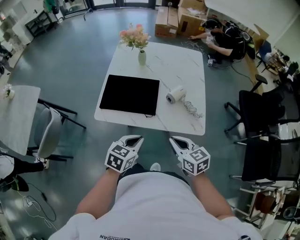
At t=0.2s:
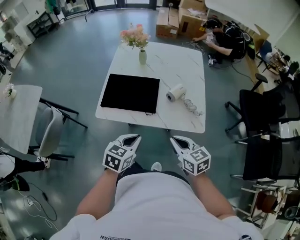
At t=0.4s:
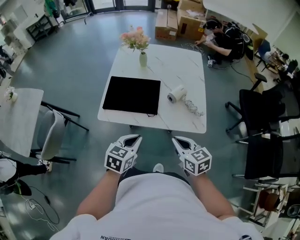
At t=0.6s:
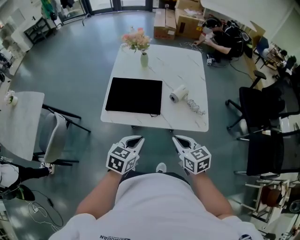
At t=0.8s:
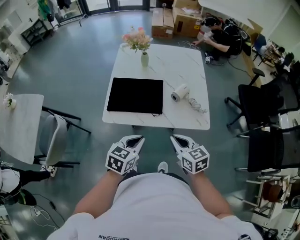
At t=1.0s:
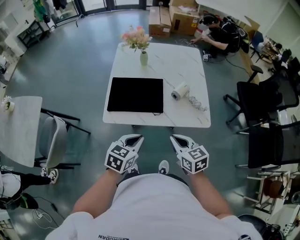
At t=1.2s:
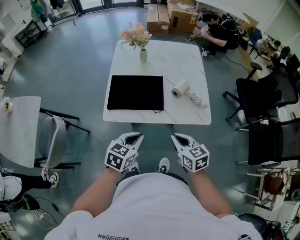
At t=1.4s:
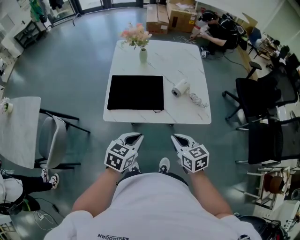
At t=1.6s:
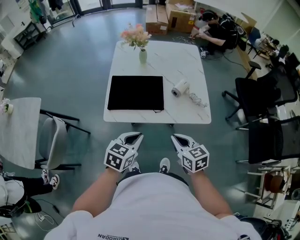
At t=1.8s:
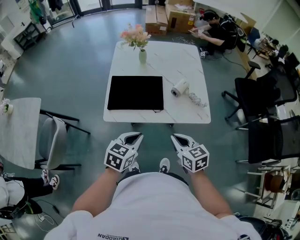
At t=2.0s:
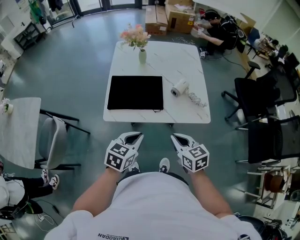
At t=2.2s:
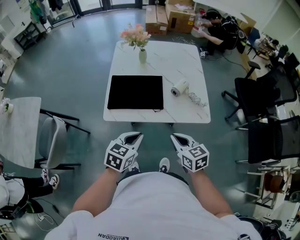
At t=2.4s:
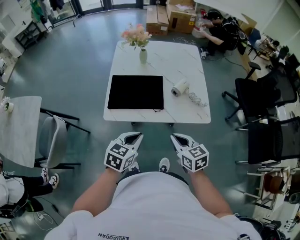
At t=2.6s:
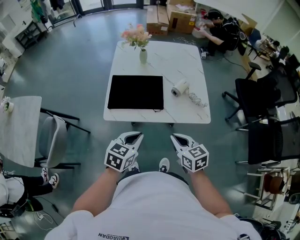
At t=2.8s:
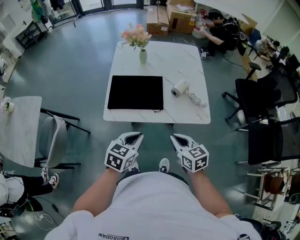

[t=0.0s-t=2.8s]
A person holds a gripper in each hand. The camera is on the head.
t=0.0s to t=1.4s: The grippers both shift to the left by roughly 5 cm.
t=1.4s to t=2.8s: The two grippers keep their place.

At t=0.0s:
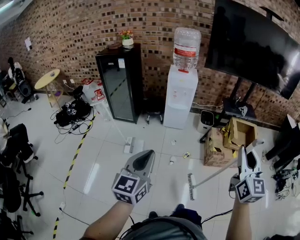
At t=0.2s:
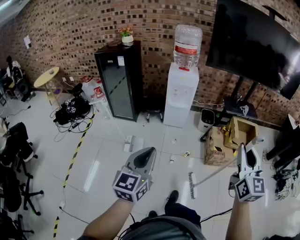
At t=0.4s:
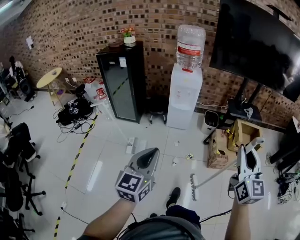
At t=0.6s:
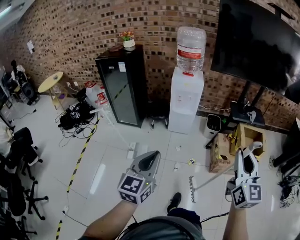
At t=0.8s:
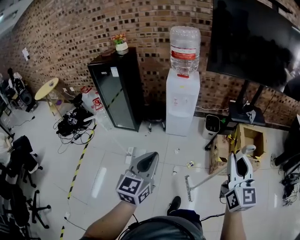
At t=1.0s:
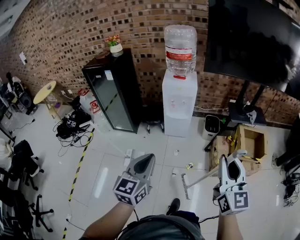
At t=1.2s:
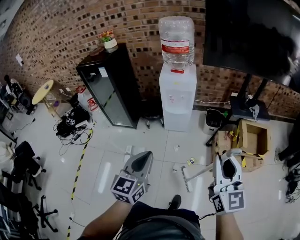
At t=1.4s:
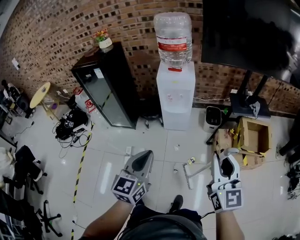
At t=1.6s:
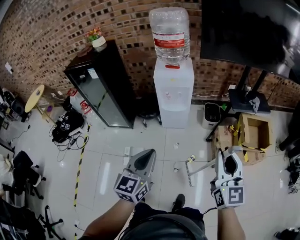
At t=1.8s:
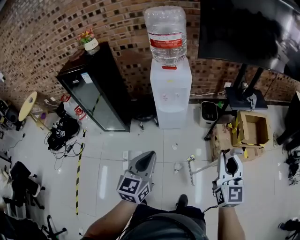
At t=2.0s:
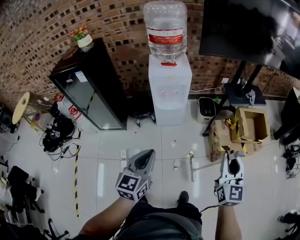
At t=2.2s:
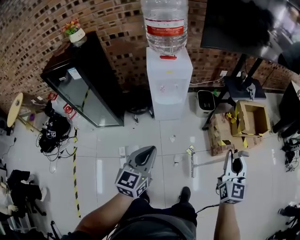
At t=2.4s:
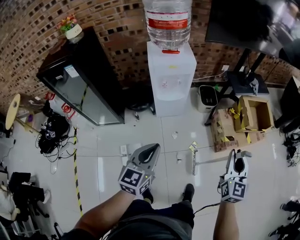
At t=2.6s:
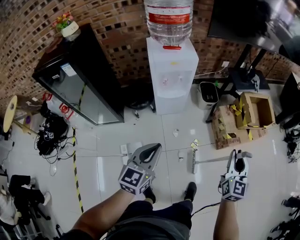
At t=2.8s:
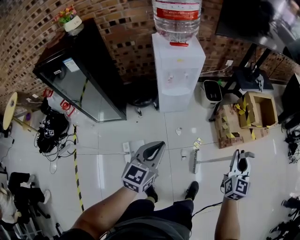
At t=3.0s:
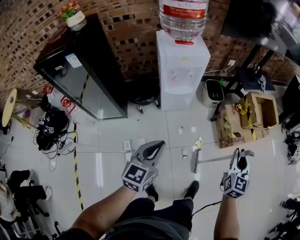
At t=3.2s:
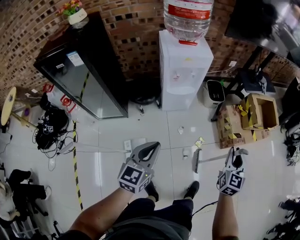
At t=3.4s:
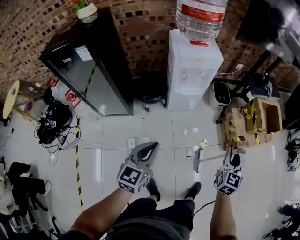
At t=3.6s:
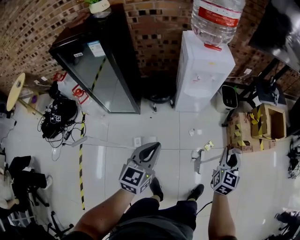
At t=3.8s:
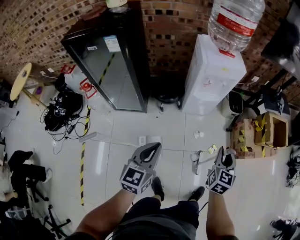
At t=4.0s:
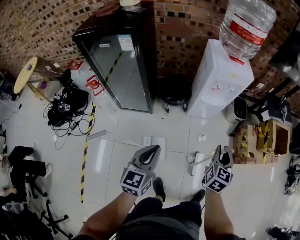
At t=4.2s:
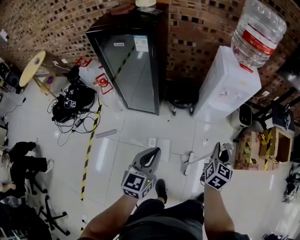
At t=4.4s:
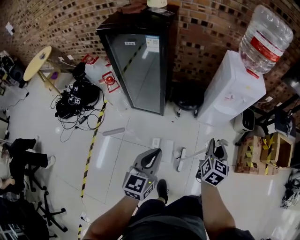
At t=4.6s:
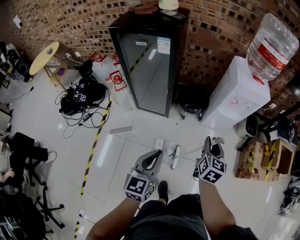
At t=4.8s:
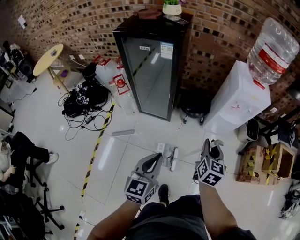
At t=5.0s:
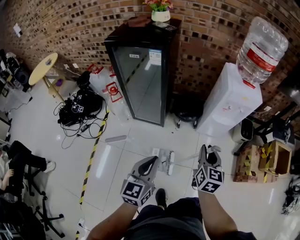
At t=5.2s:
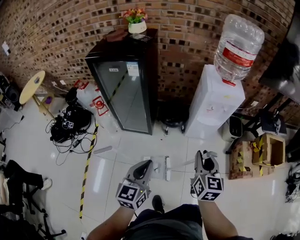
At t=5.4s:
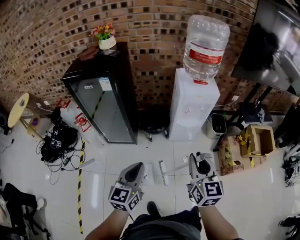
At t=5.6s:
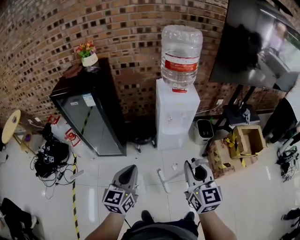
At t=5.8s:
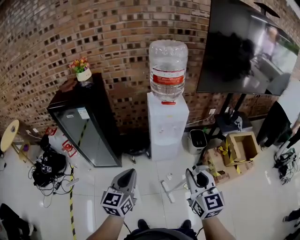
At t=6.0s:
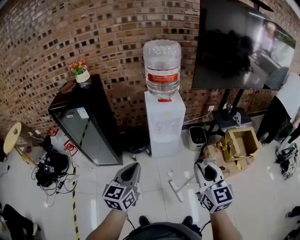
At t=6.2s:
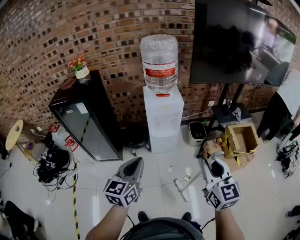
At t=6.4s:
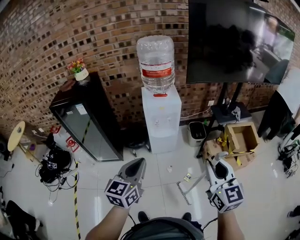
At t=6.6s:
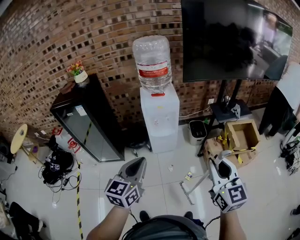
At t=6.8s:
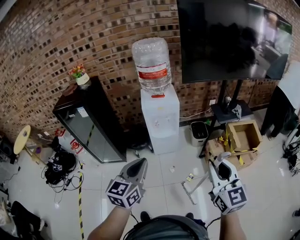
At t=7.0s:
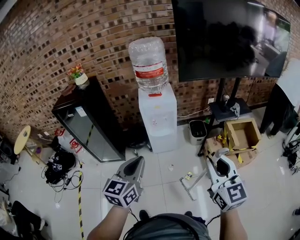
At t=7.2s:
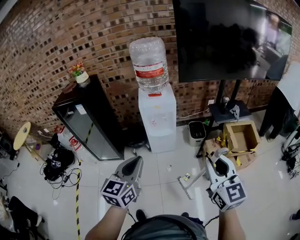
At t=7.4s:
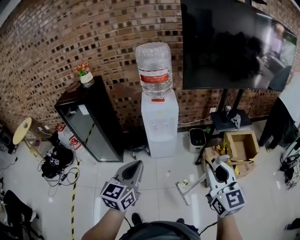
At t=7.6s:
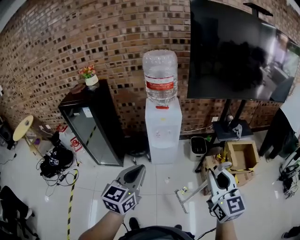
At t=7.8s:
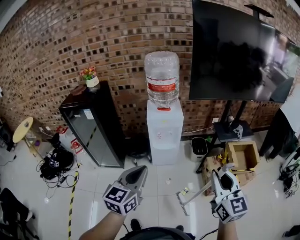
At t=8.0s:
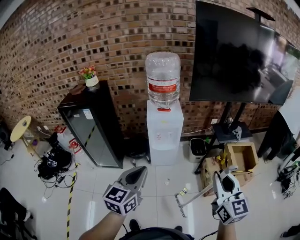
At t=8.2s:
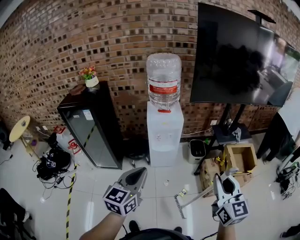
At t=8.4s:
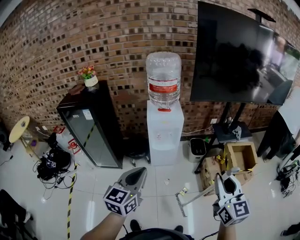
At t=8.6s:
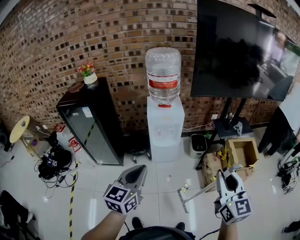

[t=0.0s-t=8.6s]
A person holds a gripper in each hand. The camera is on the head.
t=0.0s to t=1.4s: Both grippers travel together forward, roughly 35 cm.
t=1.4s to t=2.8s: The right gripper goes roughly 25 cm downward, and swivels some 40 degrees. The left gripper shifts by some 30 cm, and turns by about 20 degrees.
t=2.8s to t=4.4s: The right gripper heads to the left, covering approximately 50 cm, and changes its angle by roughly 20 degrees; the left gripper travels to the left and backward by some 35 cm, and rotates about 30 degrees.
t=4.4s to t=5.8s: The left gripper travels to the right and upward by roughly 30 cm; the right gripper shifts roughly 40 cm upward, to the right and backward, and changes its angle by roughly 20 degrees.
t=5.8s to t=7.2s: Both grippers move to the right, about 25 cm.
t=7.2s to t=8.6s: The left gripper moves to the left, roughly 5 cm.

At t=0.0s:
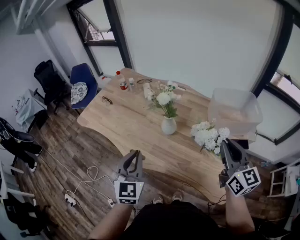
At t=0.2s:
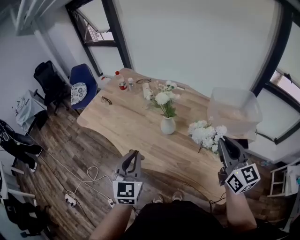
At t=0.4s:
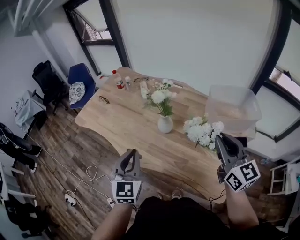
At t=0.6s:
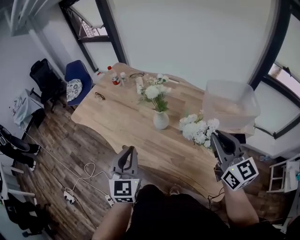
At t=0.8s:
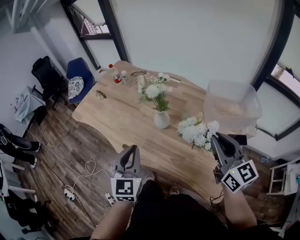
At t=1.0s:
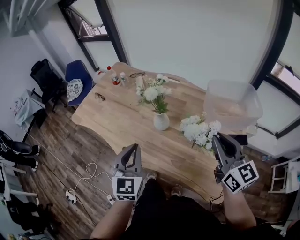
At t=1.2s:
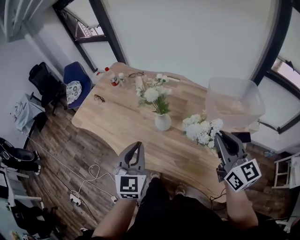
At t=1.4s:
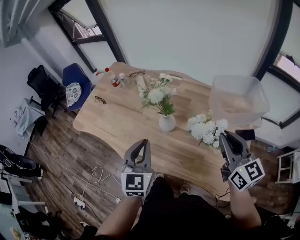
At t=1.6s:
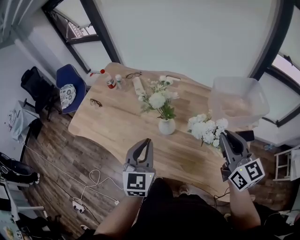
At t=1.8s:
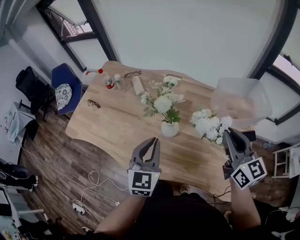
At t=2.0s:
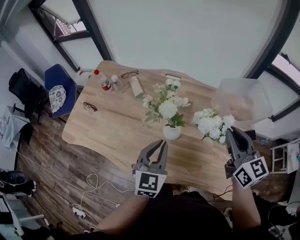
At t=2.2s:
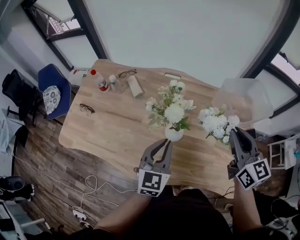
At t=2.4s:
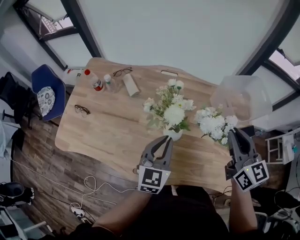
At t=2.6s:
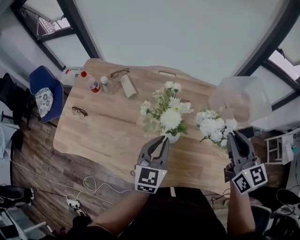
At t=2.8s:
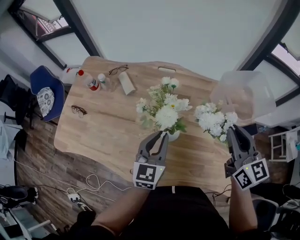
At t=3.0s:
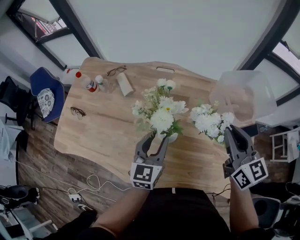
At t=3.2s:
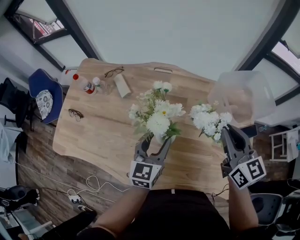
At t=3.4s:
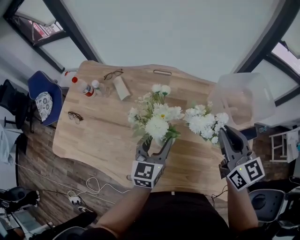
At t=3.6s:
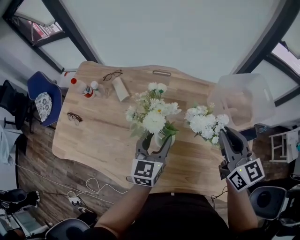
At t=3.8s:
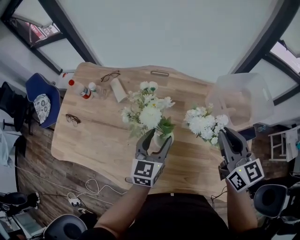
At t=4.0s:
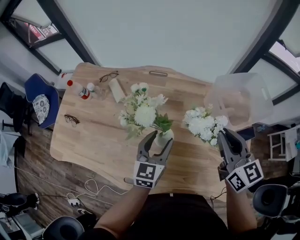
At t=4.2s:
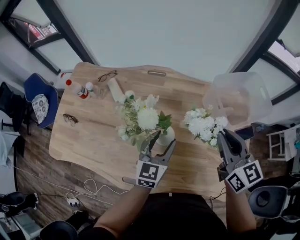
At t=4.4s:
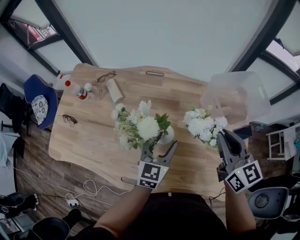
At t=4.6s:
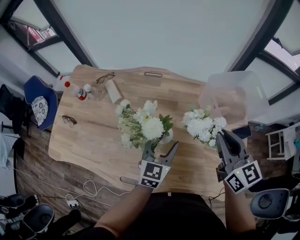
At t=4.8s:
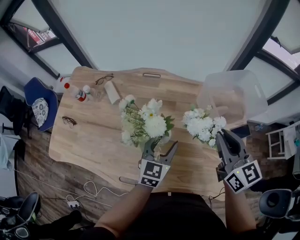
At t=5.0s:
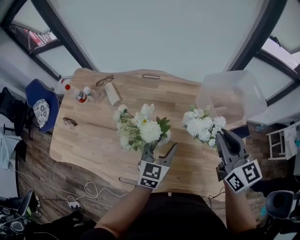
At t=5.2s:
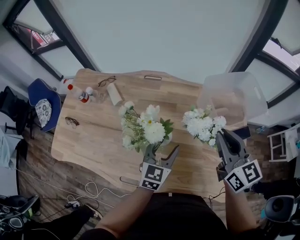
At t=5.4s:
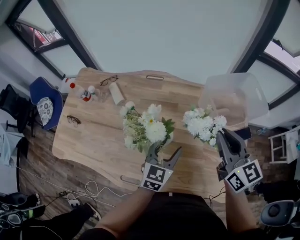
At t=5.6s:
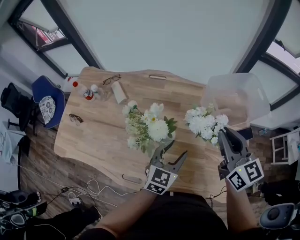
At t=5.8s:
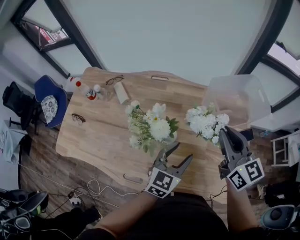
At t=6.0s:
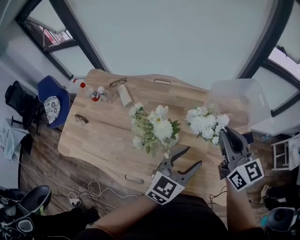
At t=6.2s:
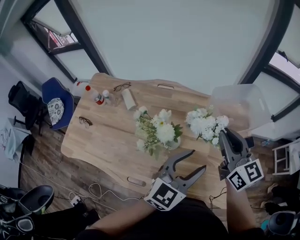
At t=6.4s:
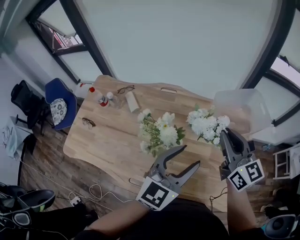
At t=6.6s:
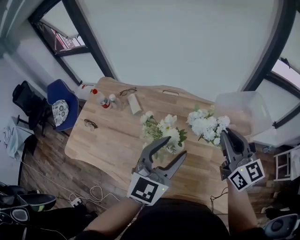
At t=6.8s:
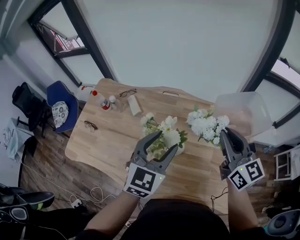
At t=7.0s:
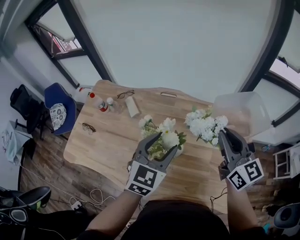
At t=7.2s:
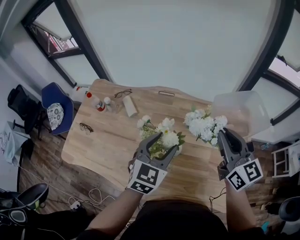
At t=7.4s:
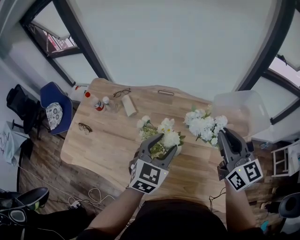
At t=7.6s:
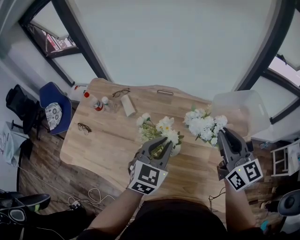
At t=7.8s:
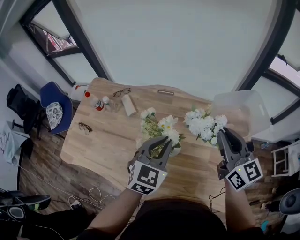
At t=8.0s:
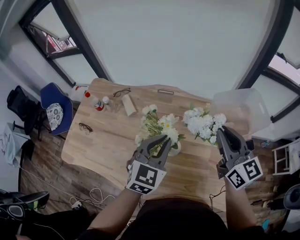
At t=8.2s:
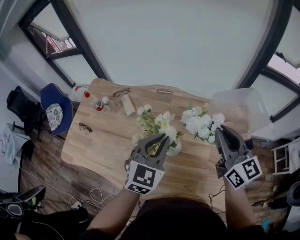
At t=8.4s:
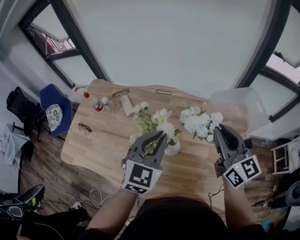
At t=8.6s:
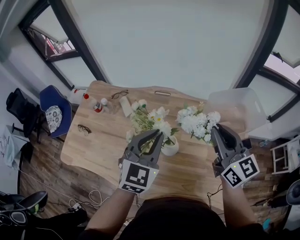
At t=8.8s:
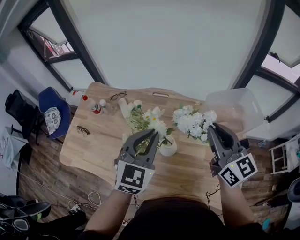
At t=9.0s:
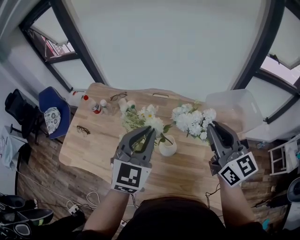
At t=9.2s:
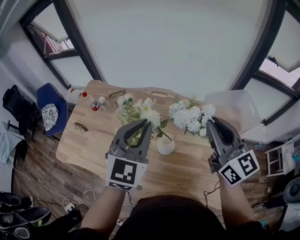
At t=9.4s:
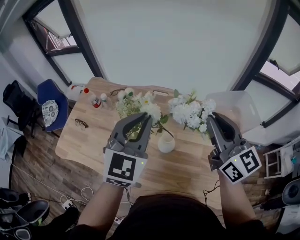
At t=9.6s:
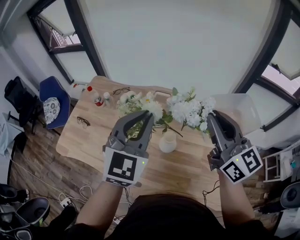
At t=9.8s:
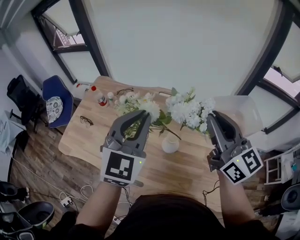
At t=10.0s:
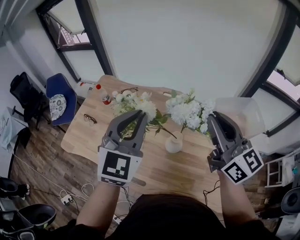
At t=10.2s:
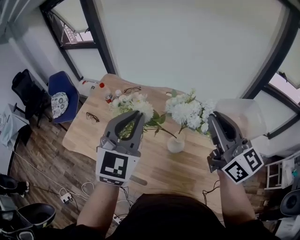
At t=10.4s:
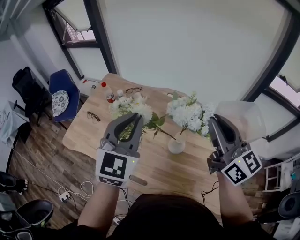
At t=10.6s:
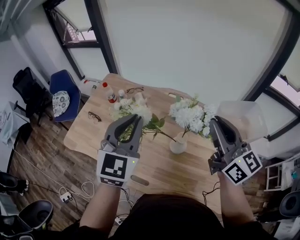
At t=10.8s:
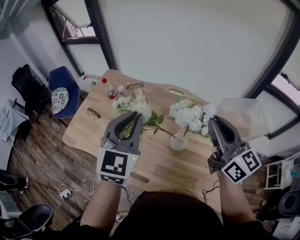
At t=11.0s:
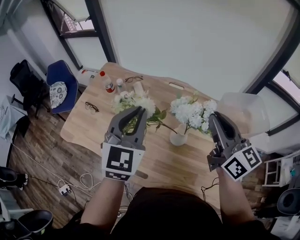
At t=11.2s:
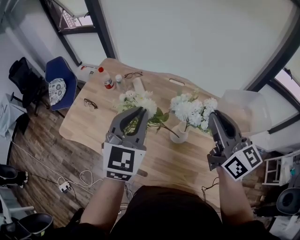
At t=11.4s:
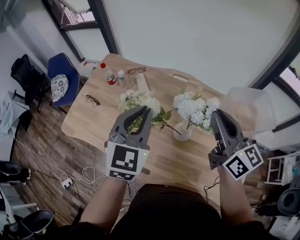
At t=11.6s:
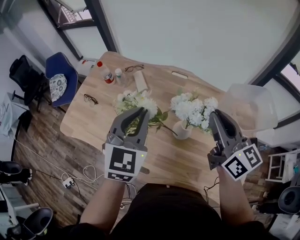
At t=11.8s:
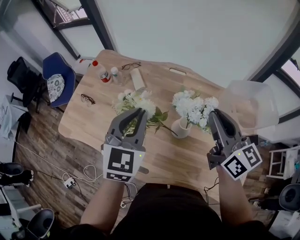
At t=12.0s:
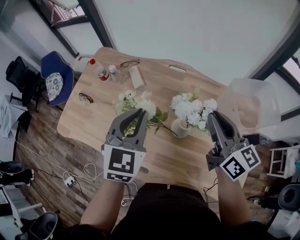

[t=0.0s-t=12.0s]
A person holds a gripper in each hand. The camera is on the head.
t=0.0s to t=1.6s: The right gripper moves forward, about 5 cm. Meanwhile the left gripper is displaced forward and to the right by about 10 cm.
t=1.6s to t=3.0s: The left gripper travels forward and downward by roughly 15 cm, rotates roughly 20 degrees, and opens up. Meanwhile the right gripper moves forward, approximately 10 cm.
t=3.0s to t=4.4s: The left gripper moves to the right, roughly 5 cm, and opens its fingers.
t=4.4s to t=6.0s: The left gripper is displaced to the right, upward and backward by some 15 cm.
t=6.0s to t=7.6s: The left gripper shifts roughly 15 cm to the left and forward, rotates roughly 20 degrees, and closes its fingers.
t=7.6s to t=9.0s: The left gripper shifts approximately 10 cm upward.
t=9.0s to t=10.4s: The two grippers go approximately 10 cm to the left and upward.
t=10.4s to t=12.0s: Both grippers move downward, approximately 15 cm.
